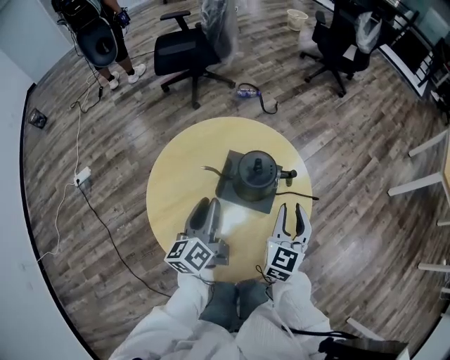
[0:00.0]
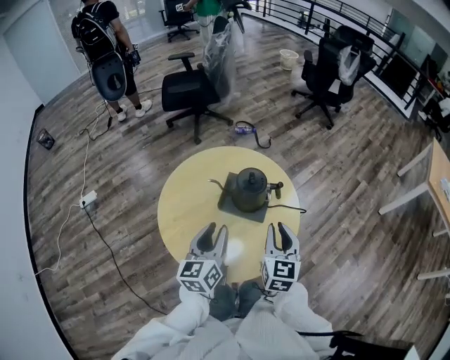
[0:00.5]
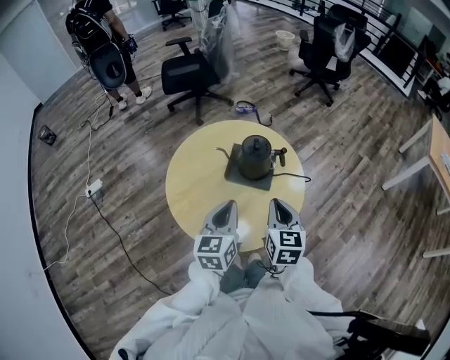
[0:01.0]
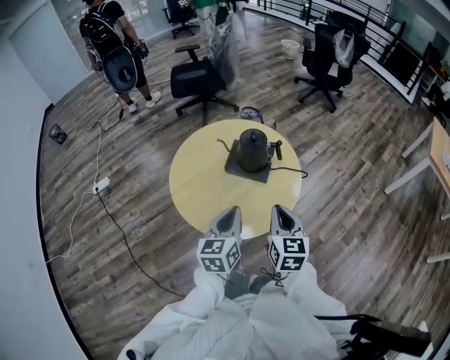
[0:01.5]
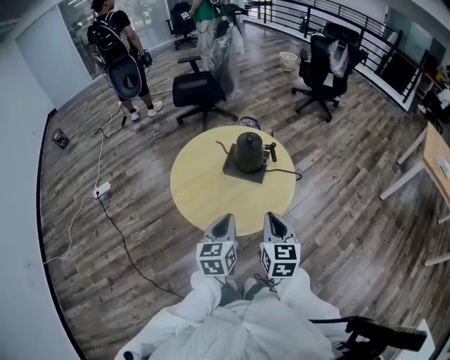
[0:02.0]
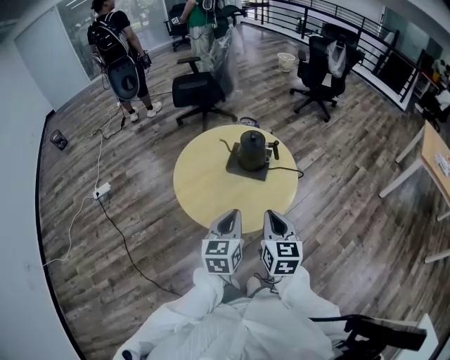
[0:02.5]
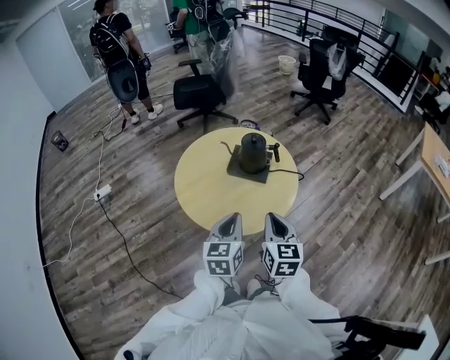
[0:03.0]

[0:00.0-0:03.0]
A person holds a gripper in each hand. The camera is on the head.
0:00.0 to 0:01.5: The right gripper heads backward and upward, covering some 20 cm, swivels about 20 degrees, and closes, while the left gripper shifts about 25 cm backward, to the right and upward, rotates roughly 30 degrees, and closes its fingers.
0:01.5 to 0:03.0: Both grippers move backward, roughly 5 cm.

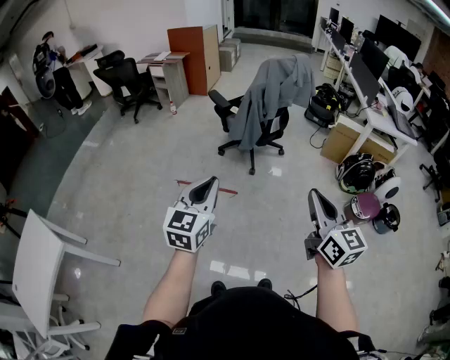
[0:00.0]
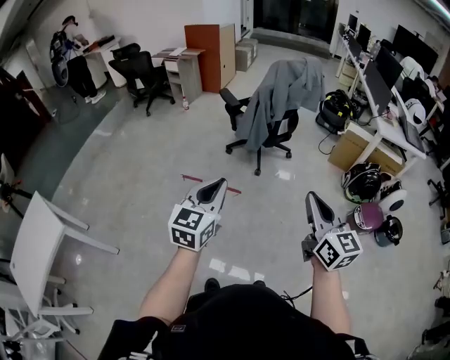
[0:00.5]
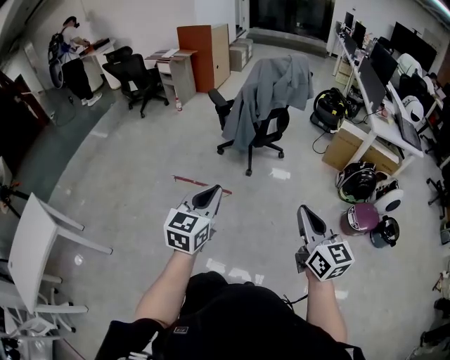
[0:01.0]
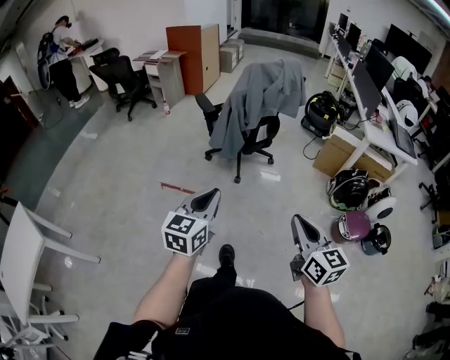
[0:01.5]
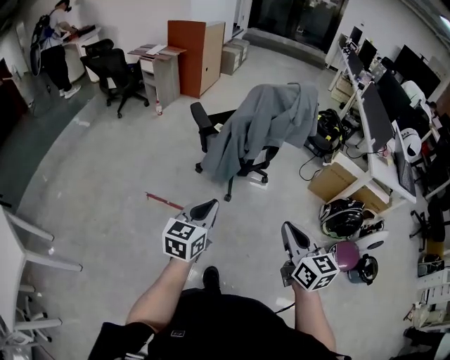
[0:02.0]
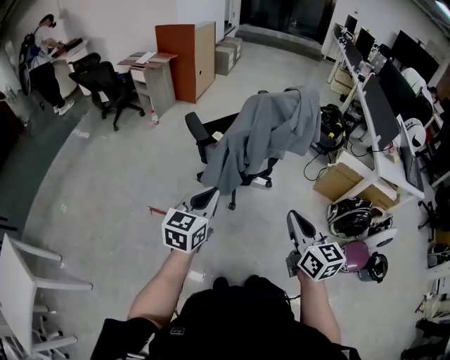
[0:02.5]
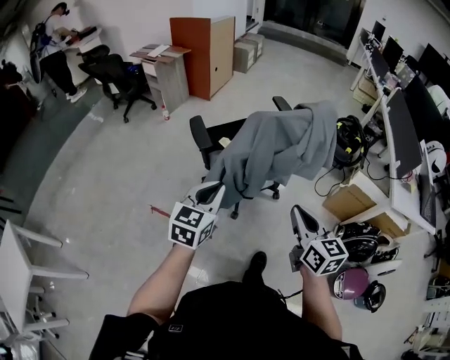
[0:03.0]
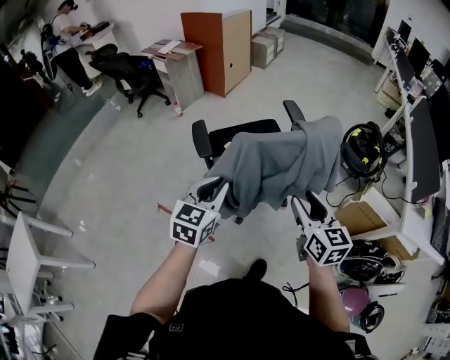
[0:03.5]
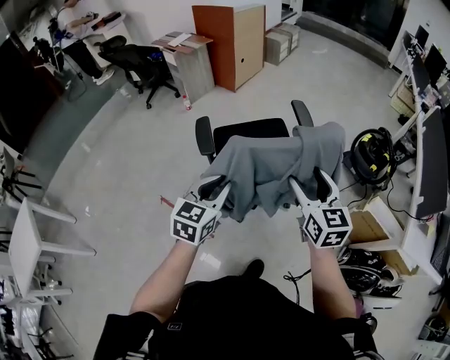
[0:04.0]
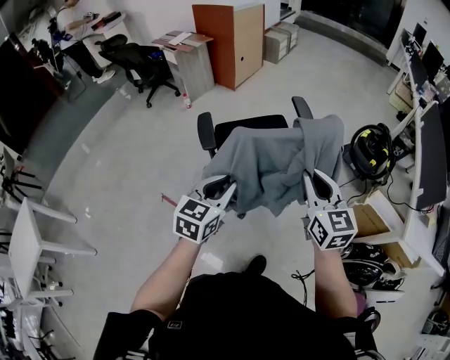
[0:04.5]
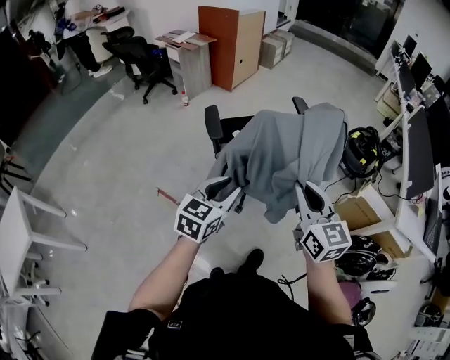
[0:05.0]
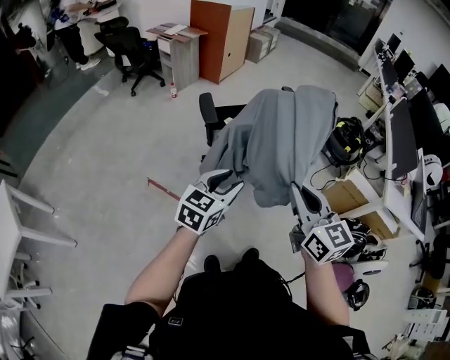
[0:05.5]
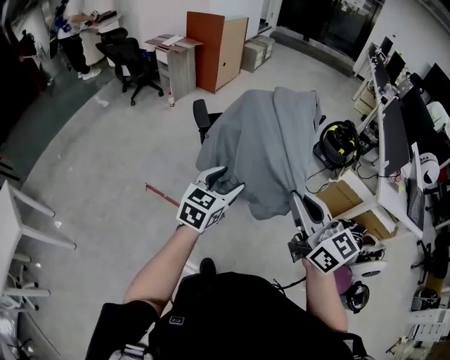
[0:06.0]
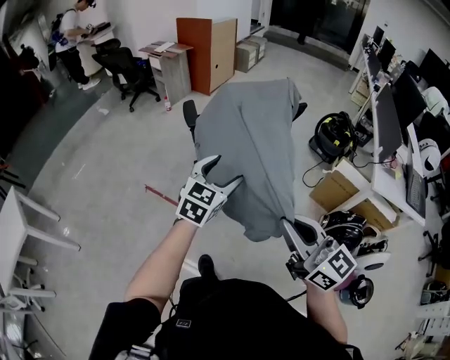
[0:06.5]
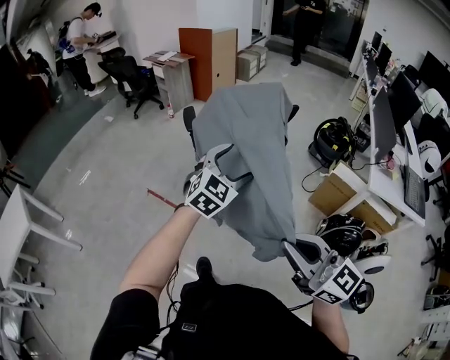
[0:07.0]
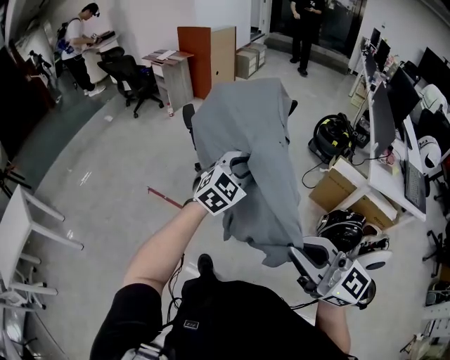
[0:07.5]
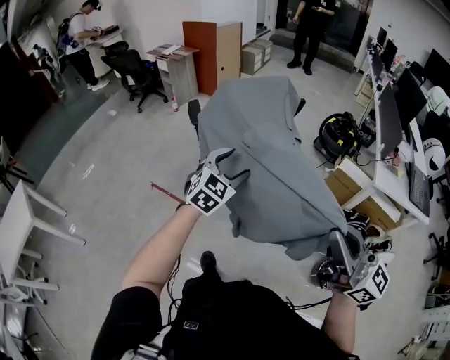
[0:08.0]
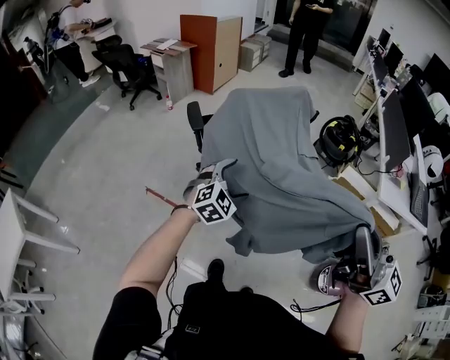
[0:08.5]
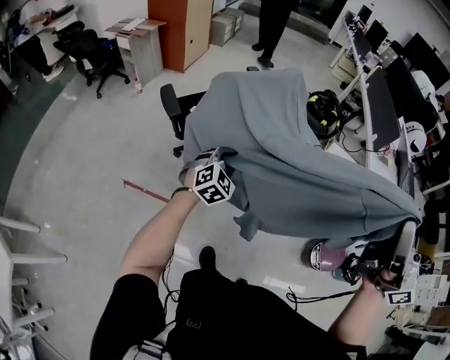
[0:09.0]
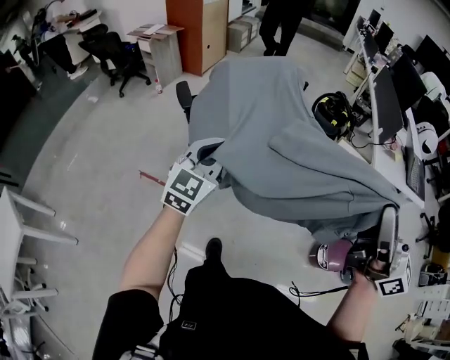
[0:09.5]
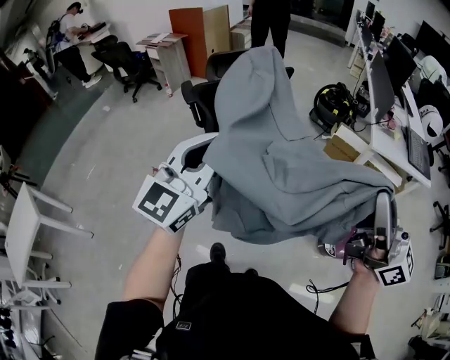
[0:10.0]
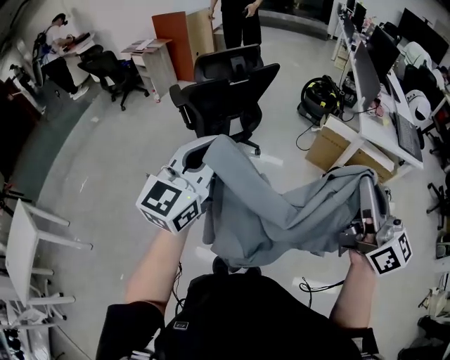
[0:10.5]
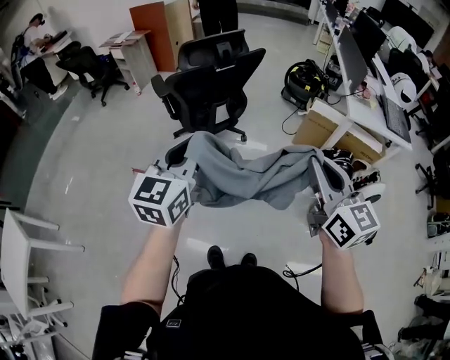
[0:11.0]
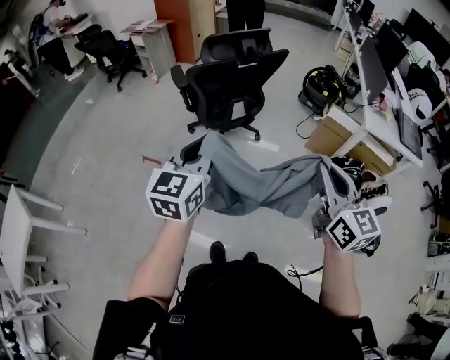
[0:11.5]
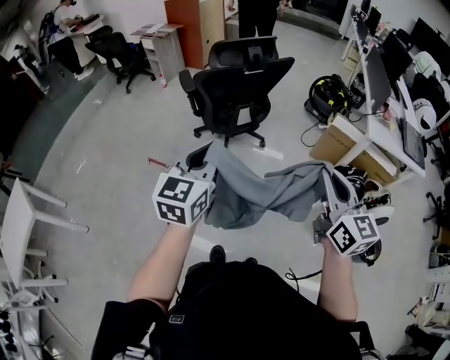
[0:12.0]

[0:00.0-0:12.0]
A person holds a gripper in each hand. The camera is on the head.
0:00.0 to 0:02.0: The left gripper travels forward and to the right by approximately 30 cm. The right gripper shifts roughly 30 cm forward.
0:02.0 to 0:04.0: The pair of grippers is taken forward, about 50 cm. The right gripper opens.
0:04.0 to 0:06.0: The grippers both shift backward by some 30 cm. The right gripper turns by some 20 degrees, and closes up, while the left gripper opens up.
0:06.0 to 0:08.0: The right gripper shifts about 30 cm backward and to the right. Meanwhile the left gripper goes about 15 cm to the right and backward, and turns by some 30 degrees.
0:08.0 to 0:10.0: The left gripper is displaced backward and upward by about 25 cm, tips its fingers upward by some 30 degrees, and closes, while the right gripper heads to the right, backward and upward, covering roughly 15 cm.
0:10.0 to 0:12.0: The two grippers go approximately 15 cm downward and to the left. The left gripper rotates some 20 degrees; the right gripper tips its fingers downward by some 30 degrees.

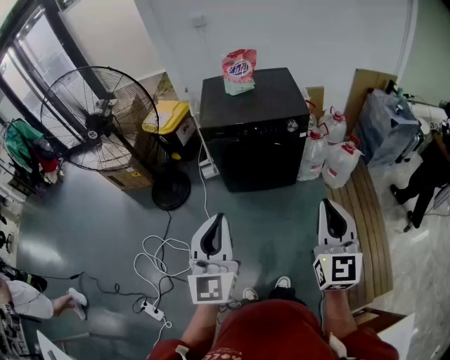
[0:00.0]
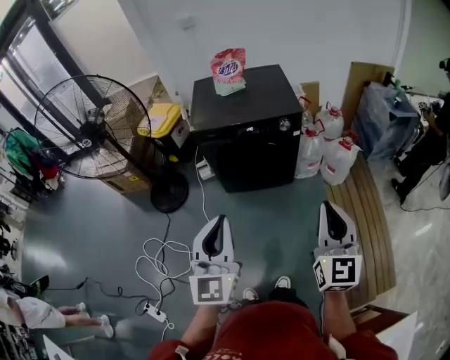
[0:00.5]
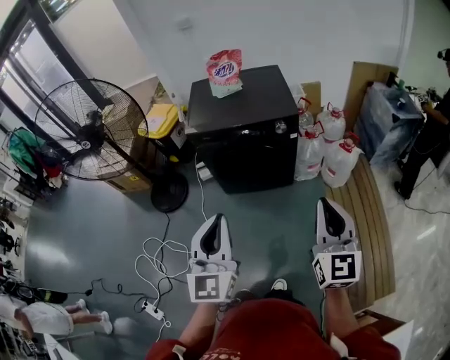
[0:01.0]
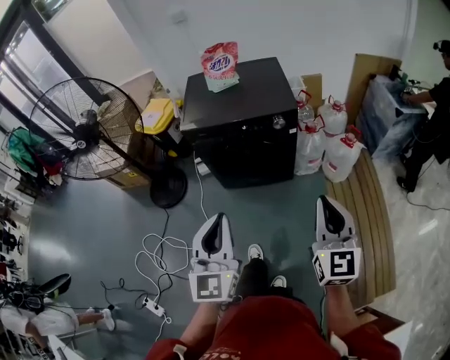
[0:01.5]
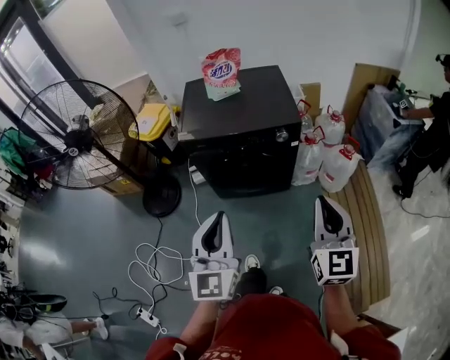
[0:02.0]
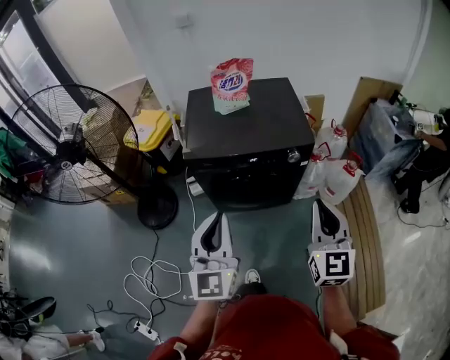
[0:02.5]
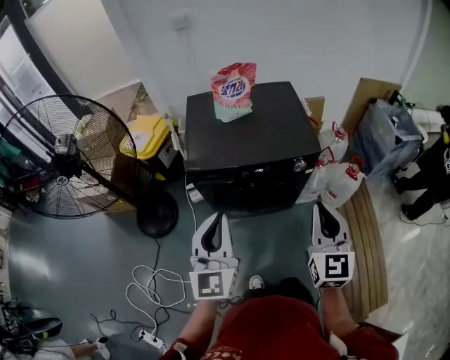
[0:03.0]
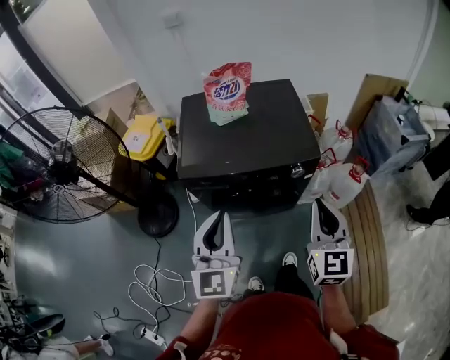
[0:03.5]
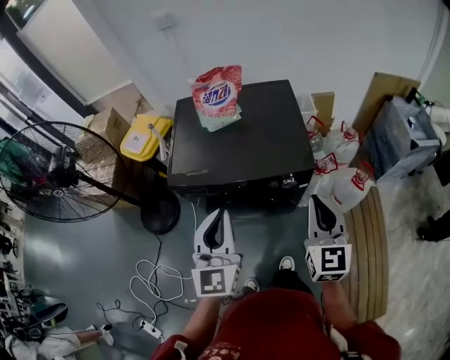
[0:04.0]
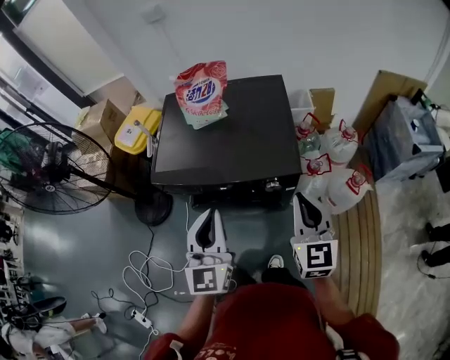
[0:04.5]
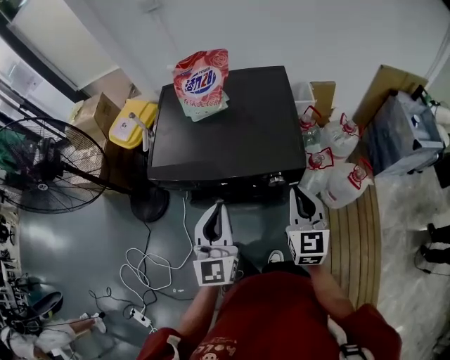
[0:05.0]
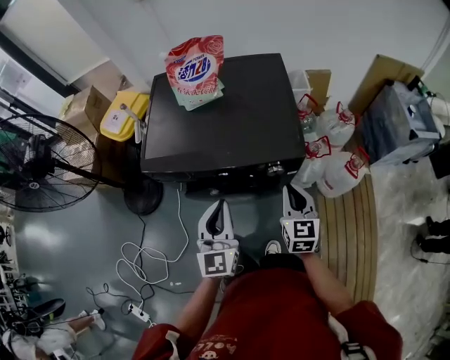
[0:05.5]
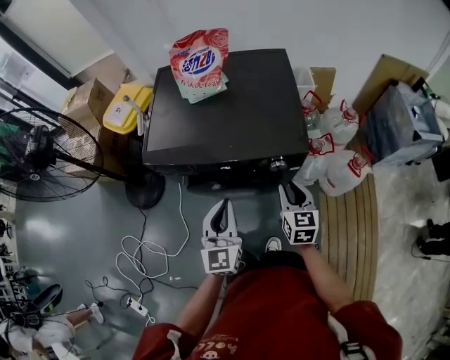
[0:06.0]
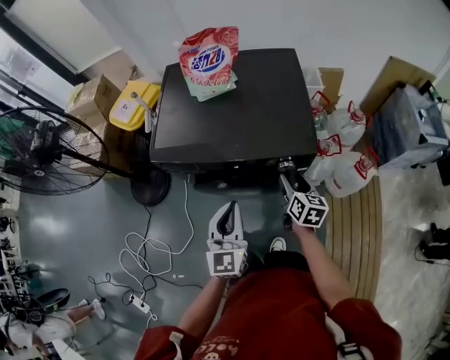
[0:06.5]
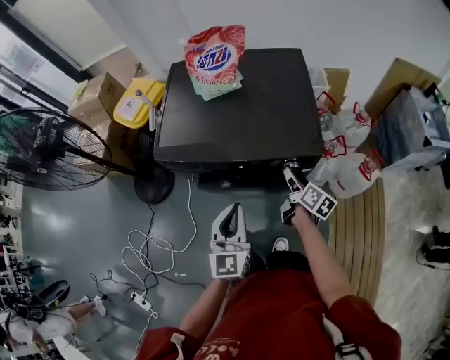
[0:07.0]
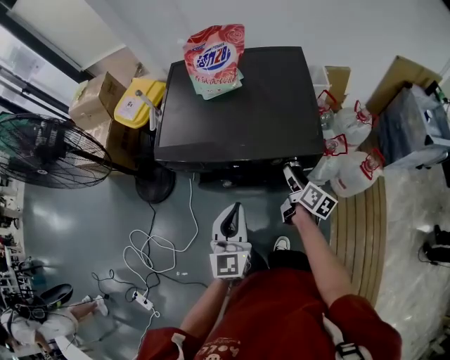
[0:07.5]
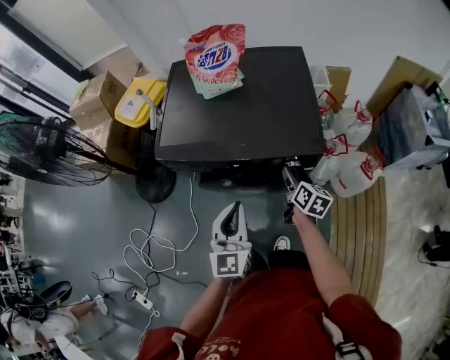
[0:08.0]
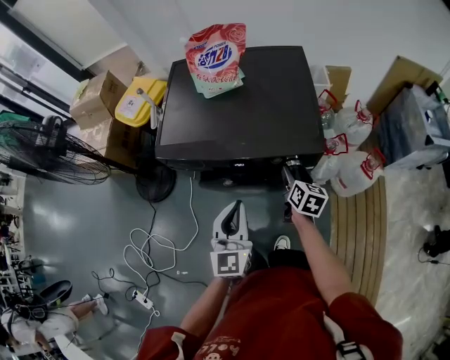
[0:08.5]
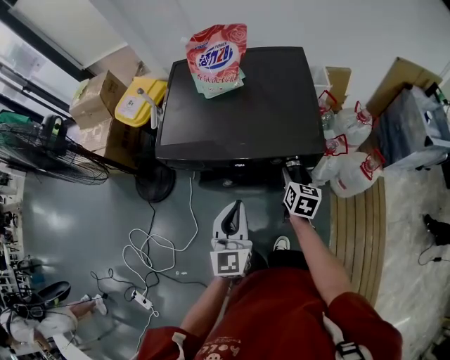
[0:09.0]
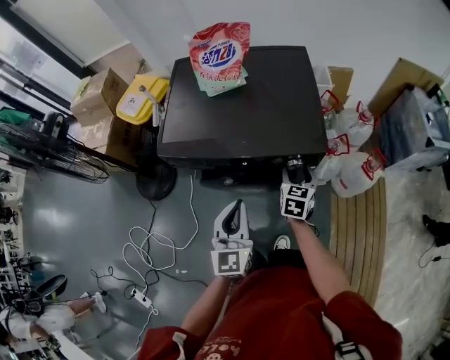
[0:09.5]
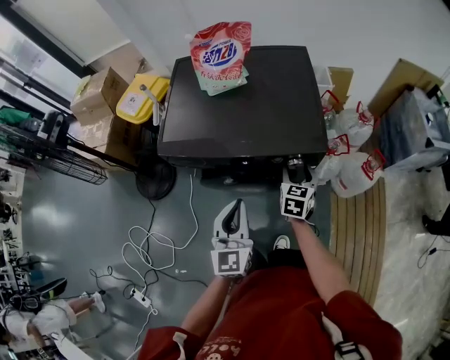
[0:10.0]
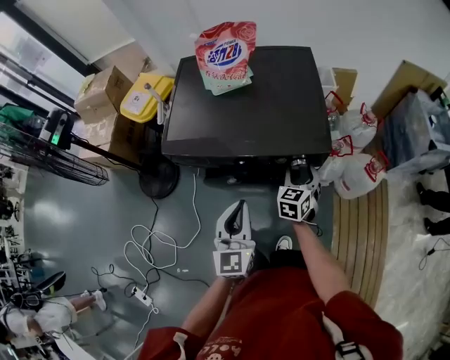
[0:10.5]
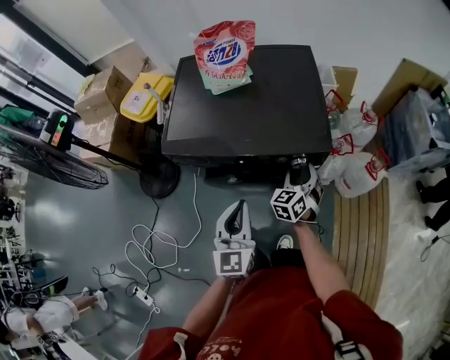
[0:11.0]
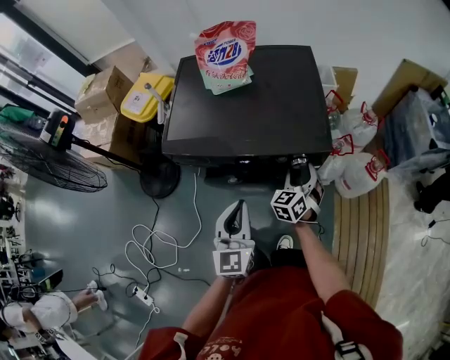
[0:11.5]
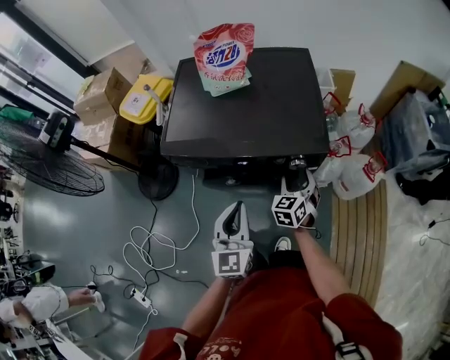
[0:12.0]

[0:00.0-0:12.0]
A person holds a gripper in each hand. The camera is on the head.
0:00.0 to 0:02.0: Both grippers move forward and to the right, some 20 cm.
0:02.0 to 0:04.0: Both grippers move forward, approximately 30 cm.
0:04.0 to 0:06.0: The grippers both shift downward by about 20 cm. The right gripper changes its angle by some 20 degrees.
0:06.0 to 0:08.0: The right gripper goes about 10 cm forward and downward, changes its angle by about 30 degrees, and opens.
0:08.0 to 0:10.0: The right gripper changes its angle by approximately 40 degrees.
0:10.0 to 0:12.0: The right gripper changes its angle by about 20 degrees.
